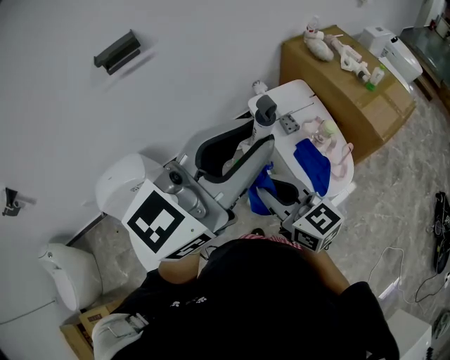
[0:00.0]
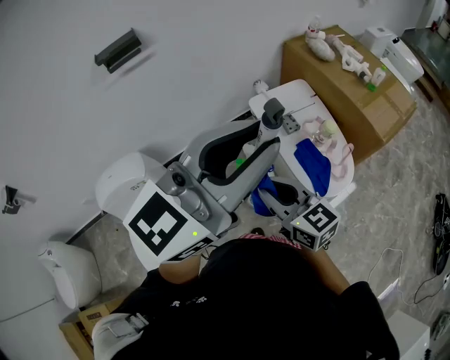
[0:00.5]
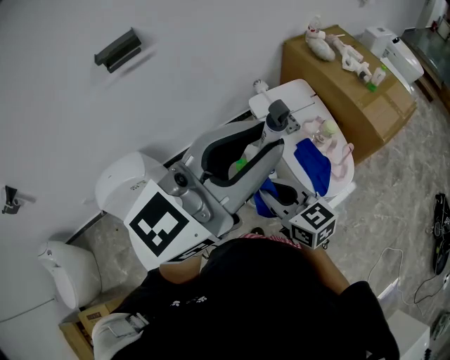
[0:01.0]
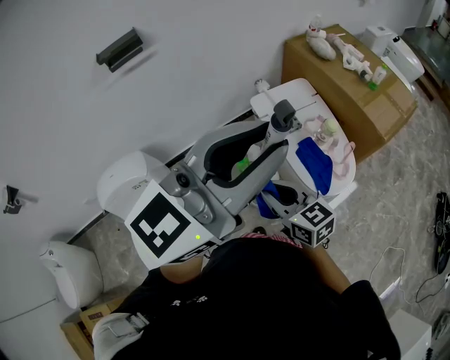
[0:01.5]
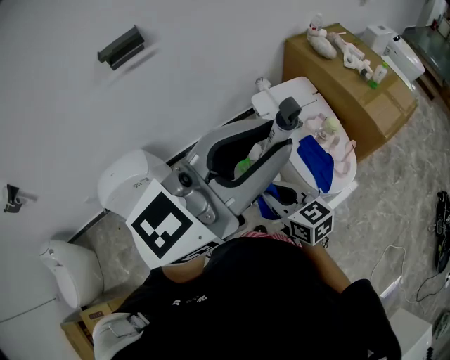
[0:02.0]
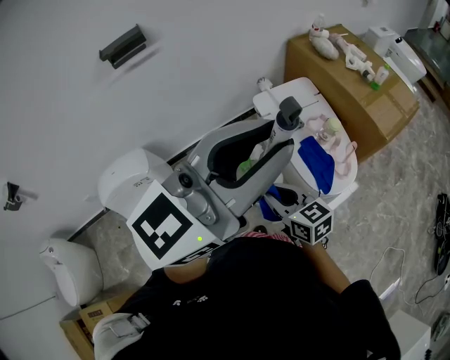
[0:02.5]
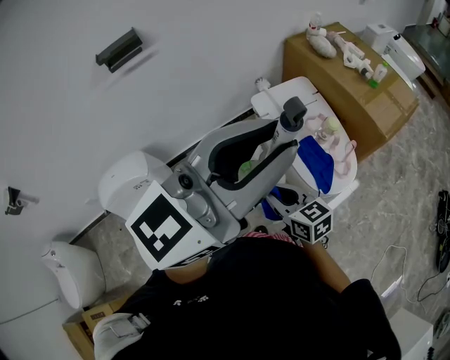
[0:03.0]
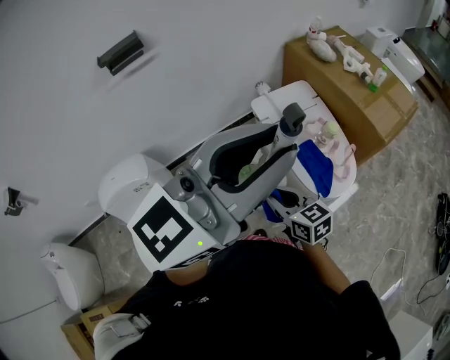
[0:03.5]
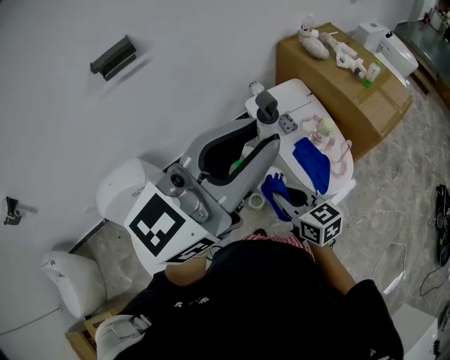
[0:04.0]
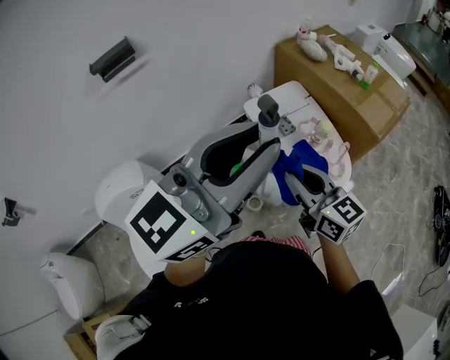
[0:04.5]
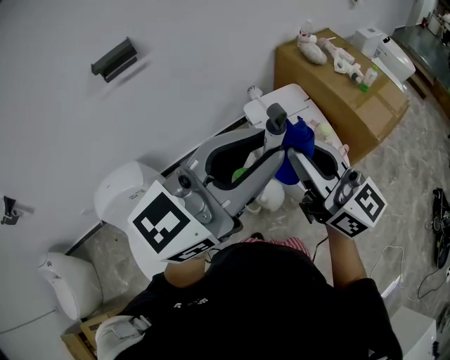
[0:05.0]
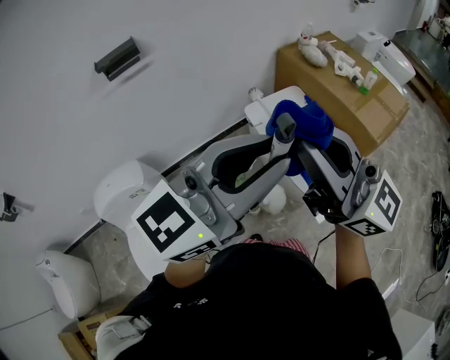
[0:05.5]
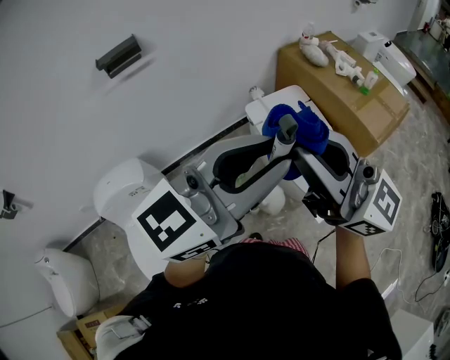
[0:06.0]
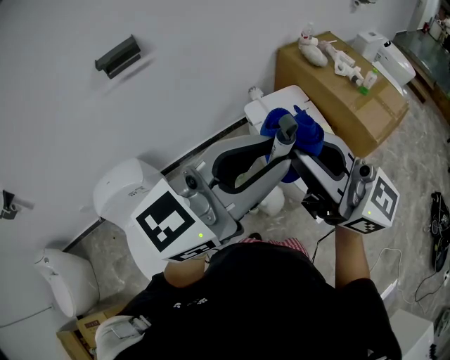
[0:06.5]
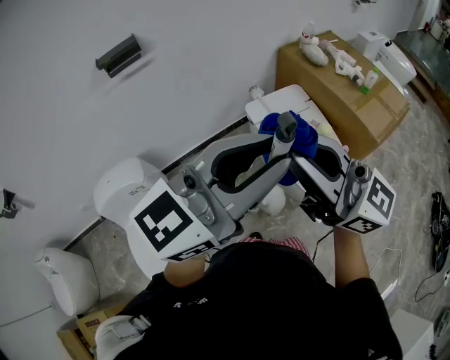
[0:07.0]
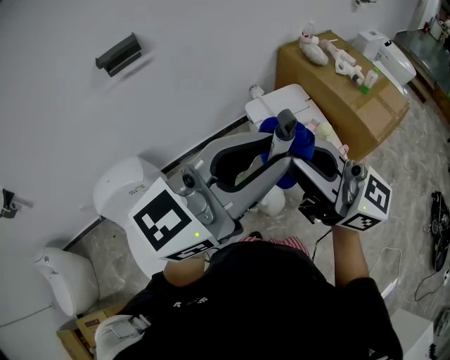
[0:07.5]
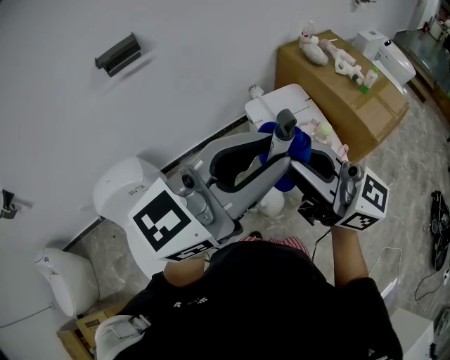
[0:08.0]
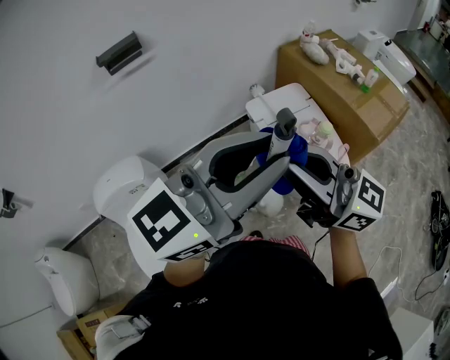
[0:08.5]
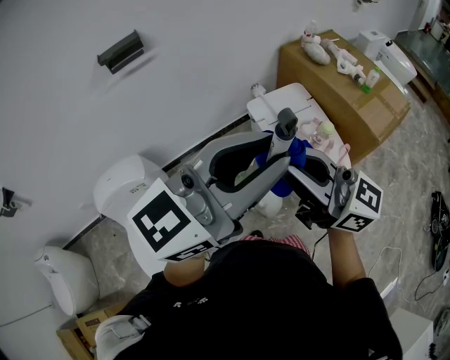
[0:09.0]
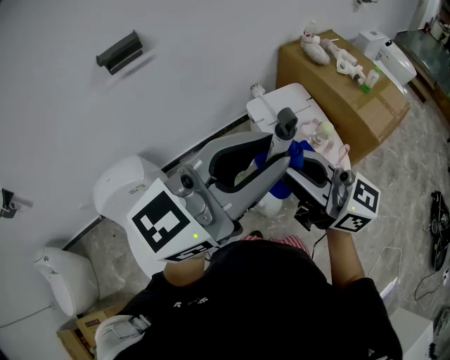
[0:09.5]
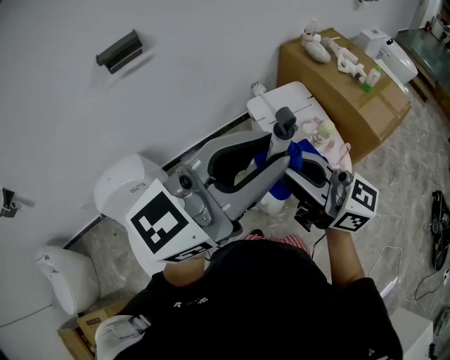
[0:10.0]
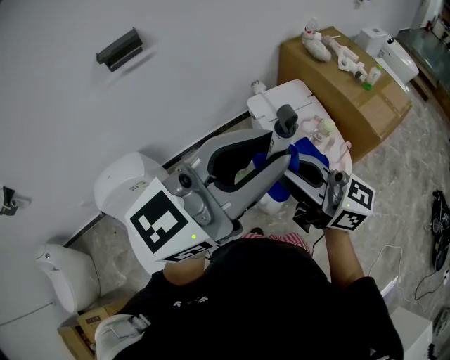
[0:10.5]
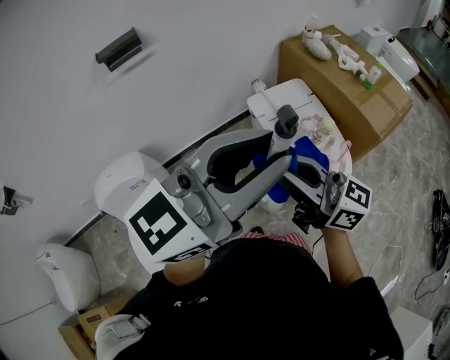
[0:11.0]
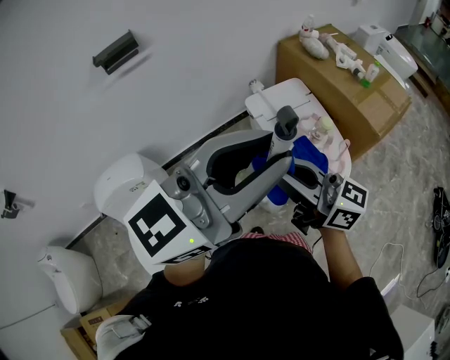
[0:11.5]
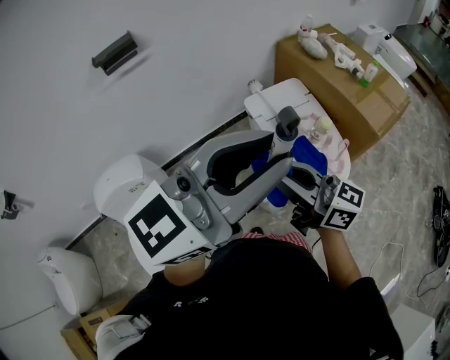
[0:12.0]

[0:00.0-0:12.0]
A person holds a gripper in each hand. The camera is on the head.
0:00.0 to 0:02.0: The right gripper goes roughly 10 cm downward.
0:02.0 to 0:04.0: There are only small adjustments of the grippers.
0:04.0 to 0:06.0: The right gripper goes some 30 cm upward, and tips its fingers upward by some 40 degrees.
0:06.0 to 0:08.0: The grippers stay close to where they were, moving slightly.
0:08.0 to 0:10.0: The grippers make only small movements.
0:10.0 to 0:12.0: The right gripper travels downward by about 5 cm.

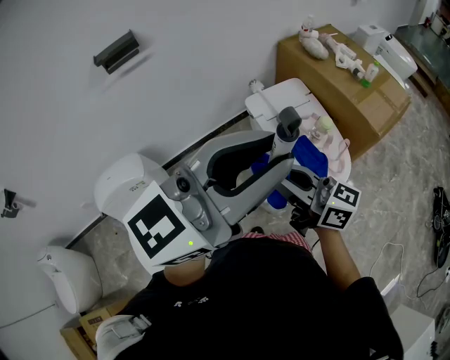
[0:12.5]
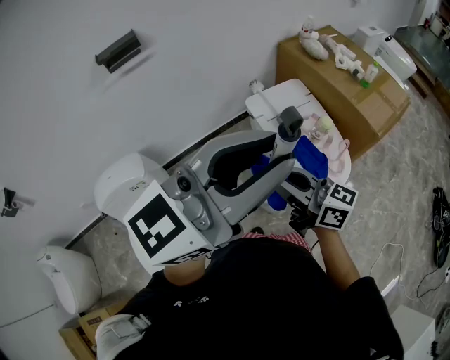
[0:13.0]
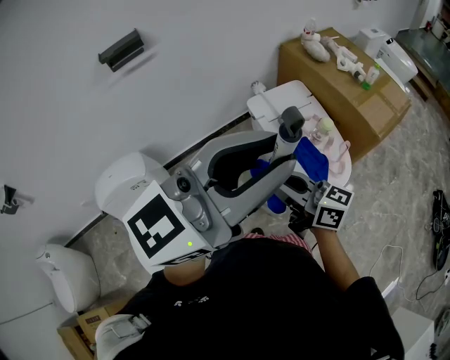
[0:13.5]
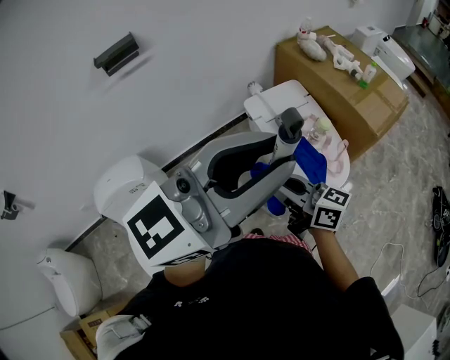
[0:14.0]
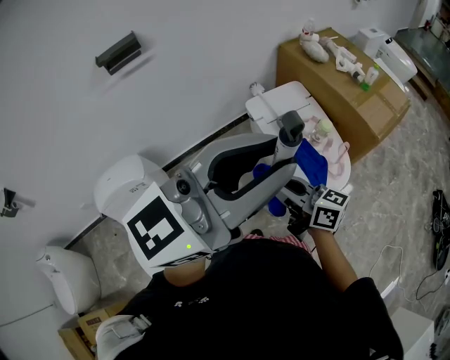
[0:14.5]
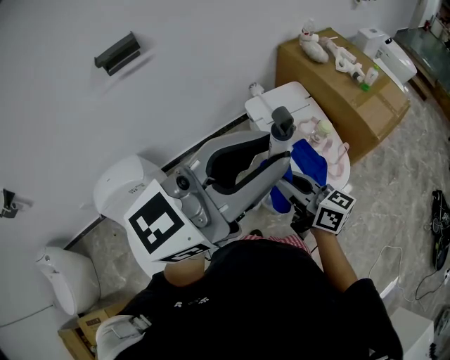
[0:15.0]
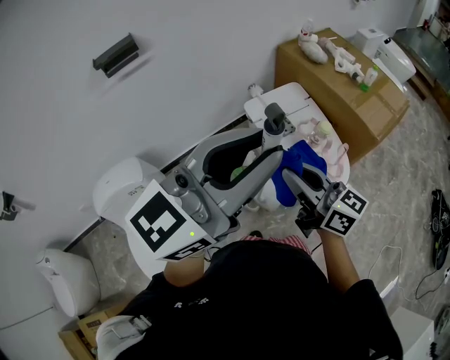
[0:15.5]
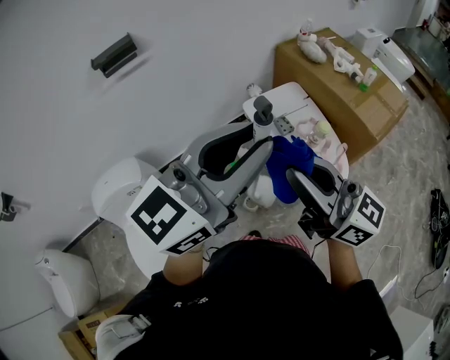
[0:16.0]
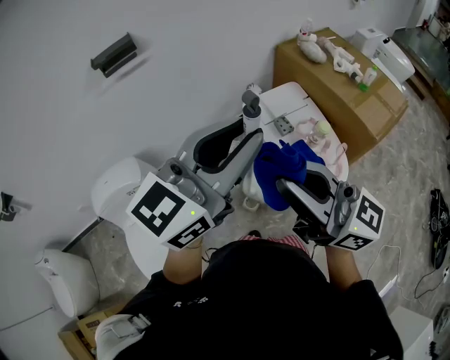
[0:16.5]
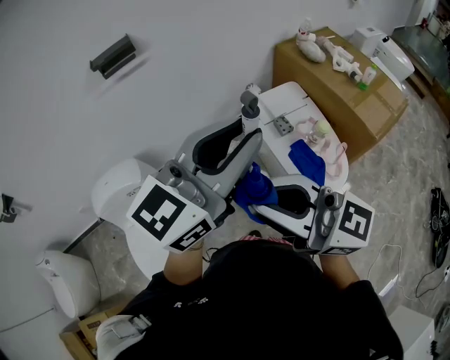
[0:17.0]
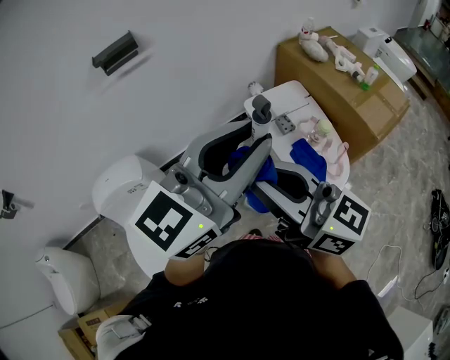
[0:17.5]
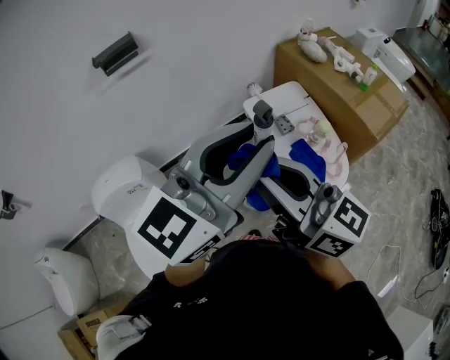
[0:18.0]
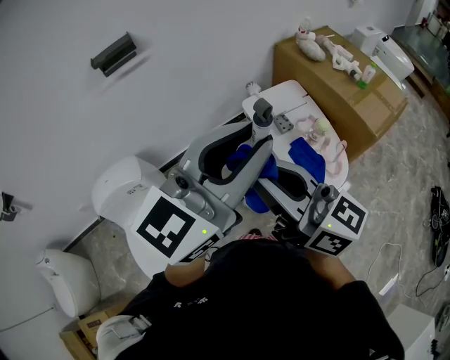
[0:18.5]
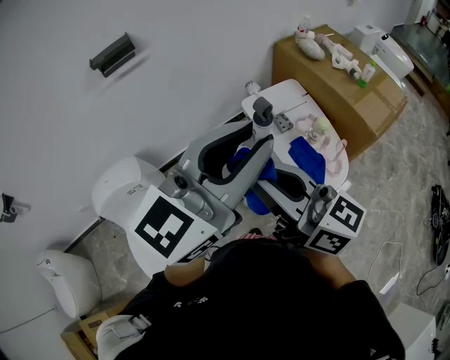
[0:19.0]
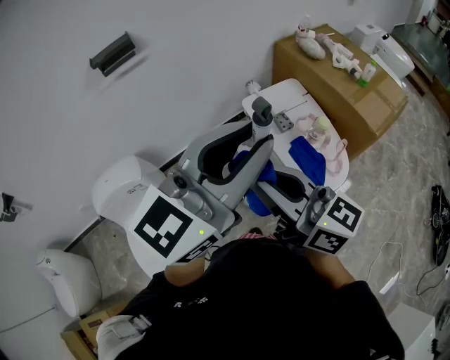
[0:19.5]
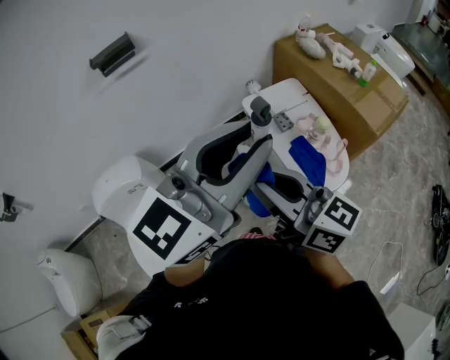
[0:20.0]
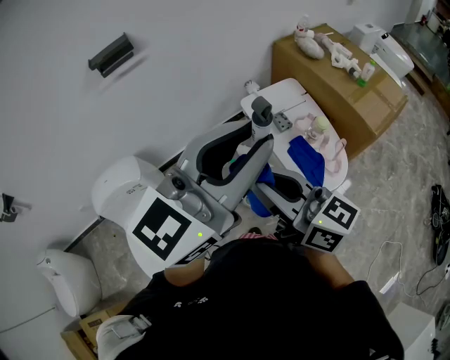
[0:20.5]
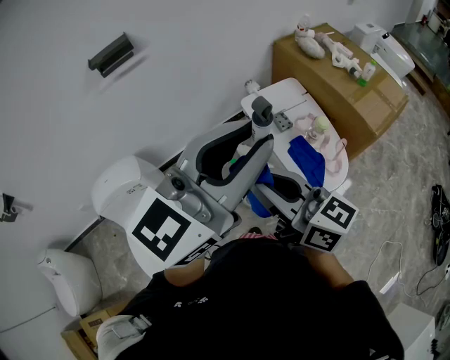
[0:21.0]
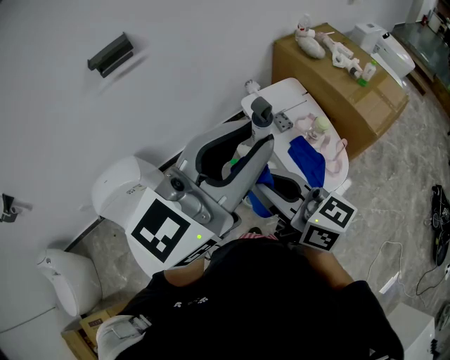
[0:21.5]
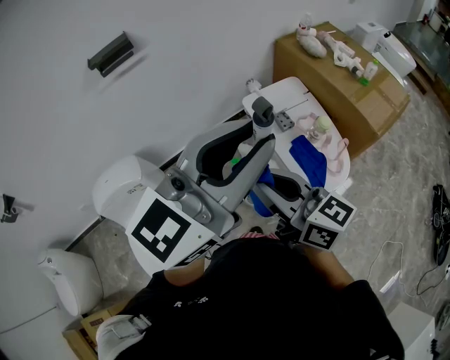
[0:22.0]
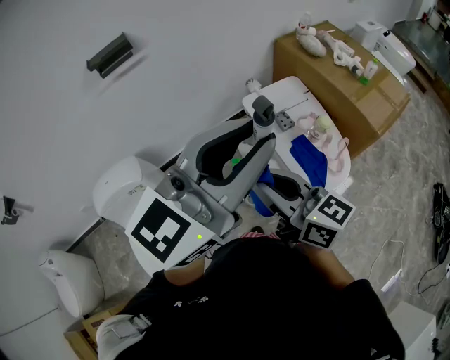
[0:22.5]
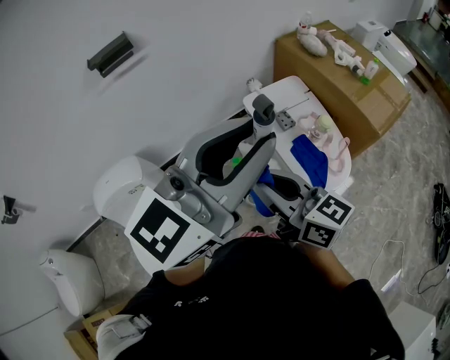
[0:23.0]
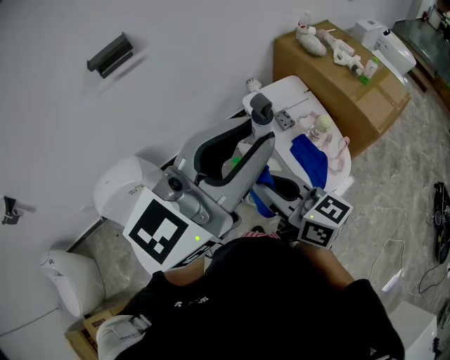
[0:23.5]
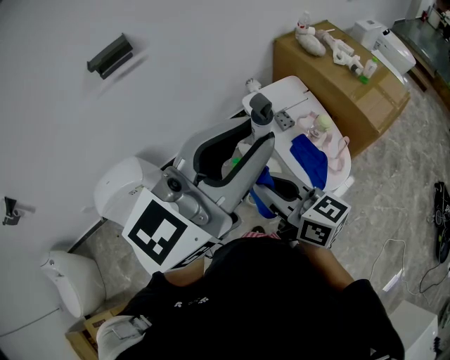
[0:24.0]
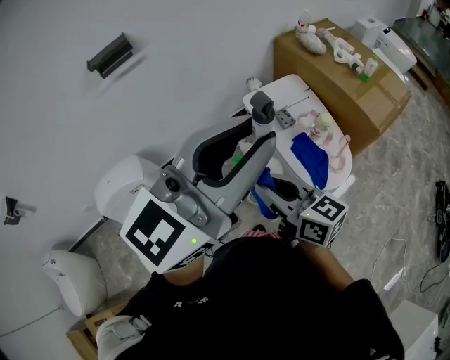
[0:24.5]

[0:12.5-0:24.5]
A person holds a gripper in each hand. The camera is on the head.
0:12.5 to 0:14.5: The right gripper goes roughly 5 cm downward.
0:14.5 to 0:16.5: The left gripper shifts about 5 cm forward, while the right gripper shifts roughly 20 cm upward, and swivels approximately 30 degrees.
0:16.5 to 0:18.5: The grippers move only a little.
0:18.5 to 0:20.5: There are only small adjustments of the grippers.
0:20.5 to 0:22.5: The grippers stay close to where they were, moving slightly.
0:22.5 to 0:24.5: The right gripper travels downward by some 5 cm.

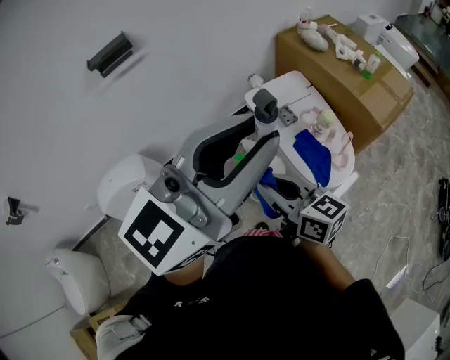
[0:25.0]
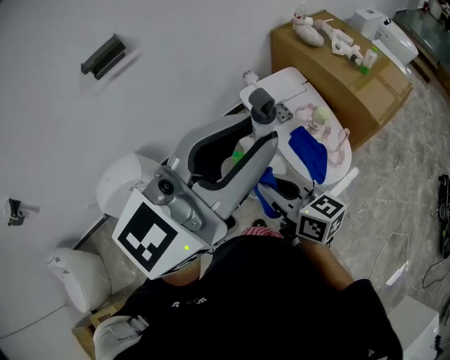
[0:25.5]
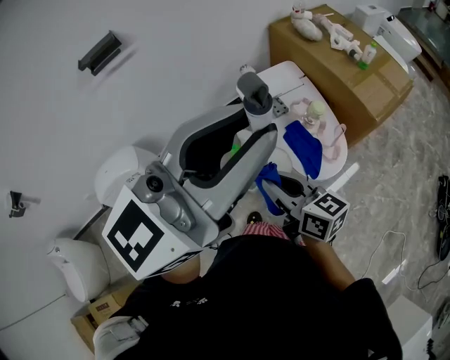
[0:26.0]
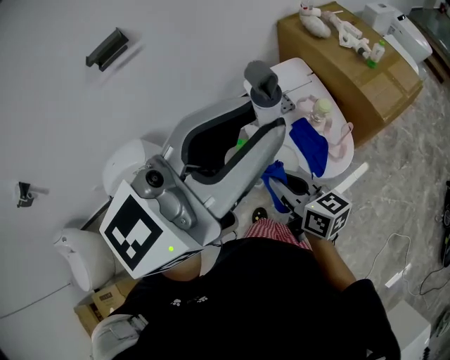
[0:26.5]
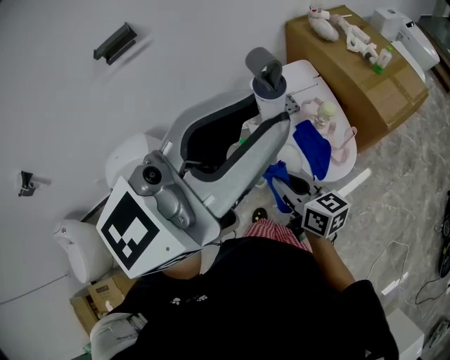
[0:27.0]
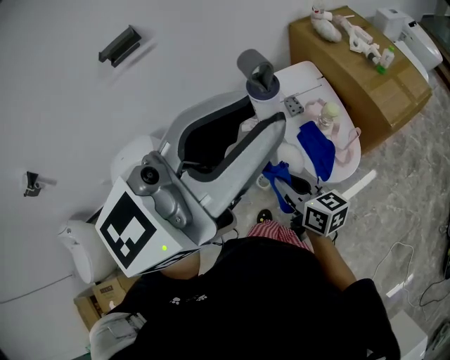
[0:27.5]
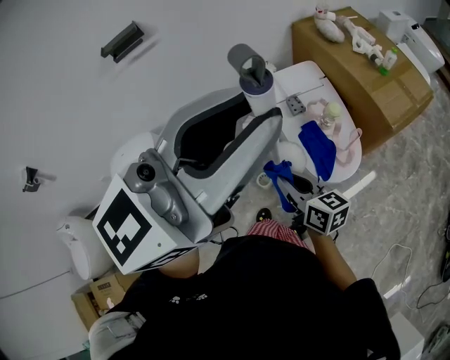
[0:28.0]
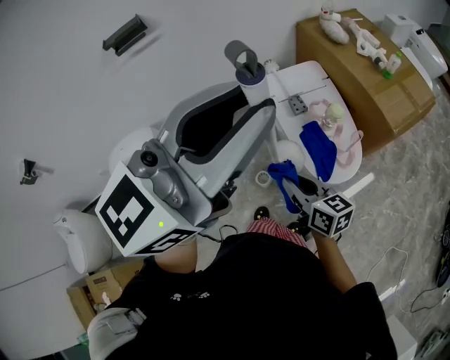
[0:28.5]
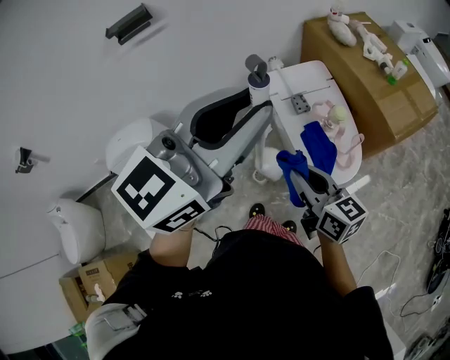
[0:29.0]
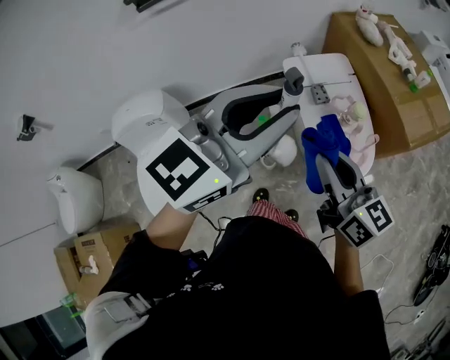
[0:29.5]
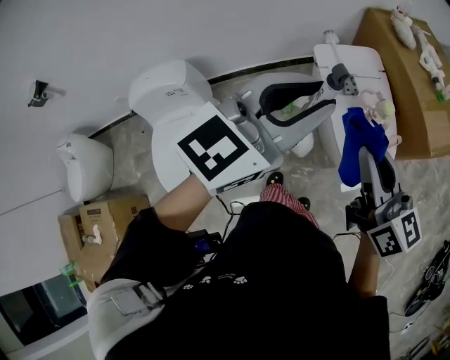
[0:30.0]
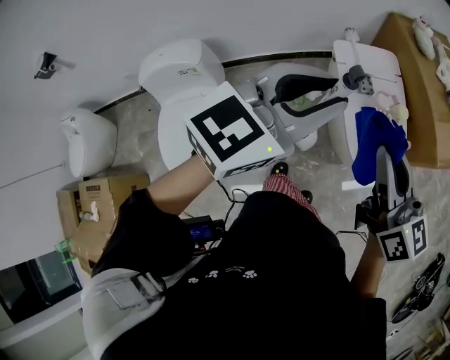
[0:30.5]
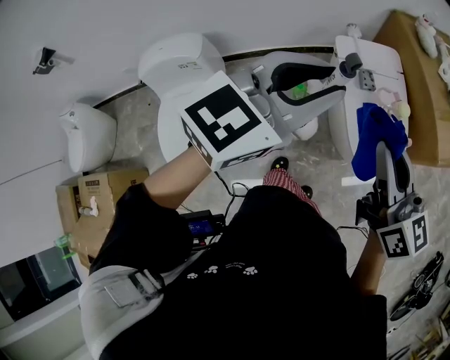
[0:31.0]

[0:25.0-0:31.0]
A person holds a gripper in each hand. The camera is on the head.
0:25.0 to 0:27.0: The left gripper shifts some 10 cm to the right. The right gripper goes some 10 cm to the right and downward.
0:27.0 to 0:29.0: The left gripper shifts approximately 10 cm downward and to the left.
0:29.0 to 0:31.0: The right gripper heads upward, covering some 10 cm. Meanwhile the left gripper moves downward and to the left, roughly 10 cm.
